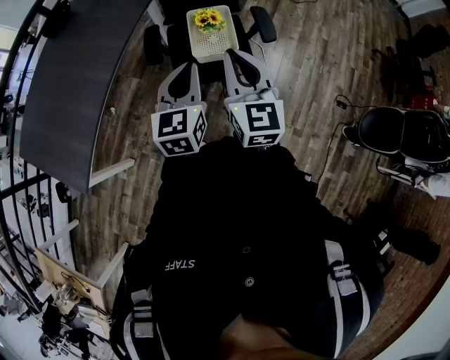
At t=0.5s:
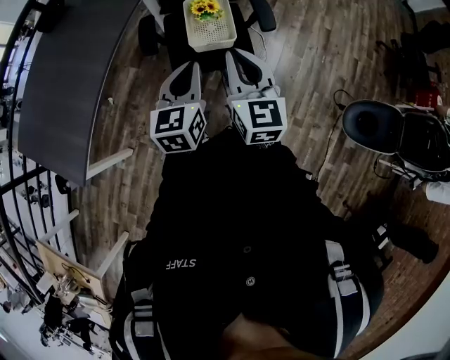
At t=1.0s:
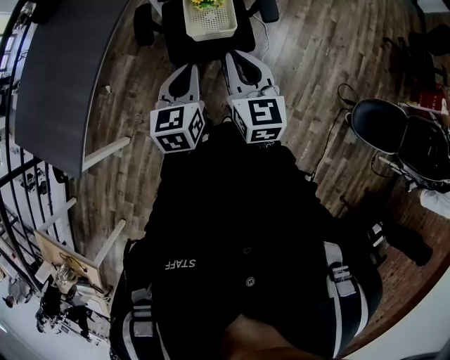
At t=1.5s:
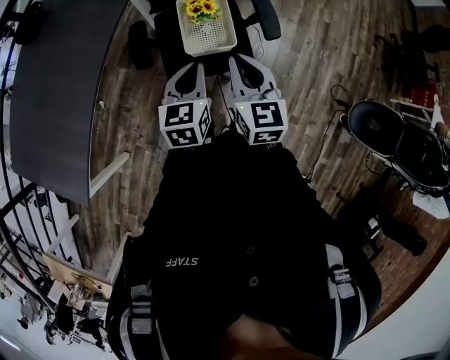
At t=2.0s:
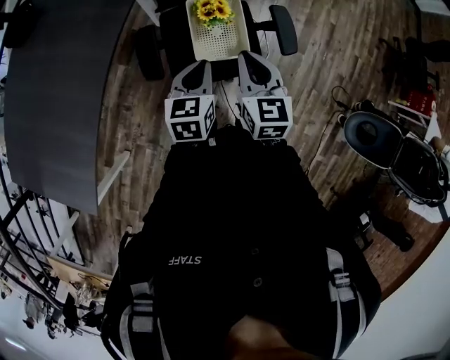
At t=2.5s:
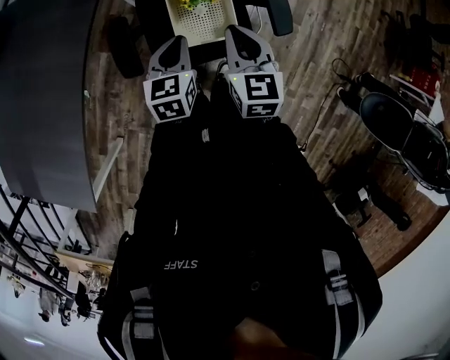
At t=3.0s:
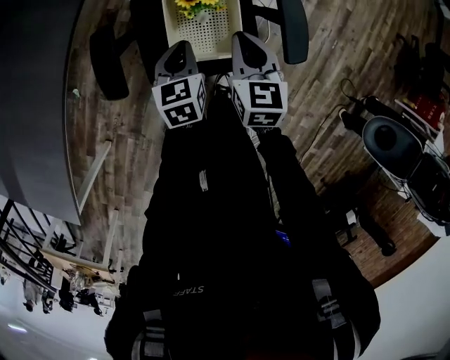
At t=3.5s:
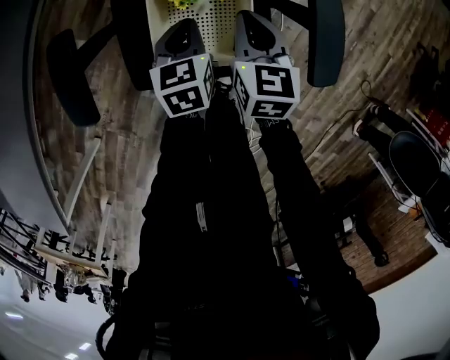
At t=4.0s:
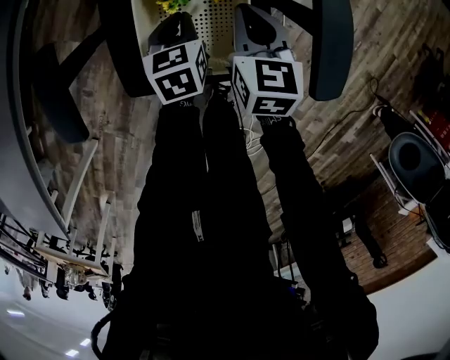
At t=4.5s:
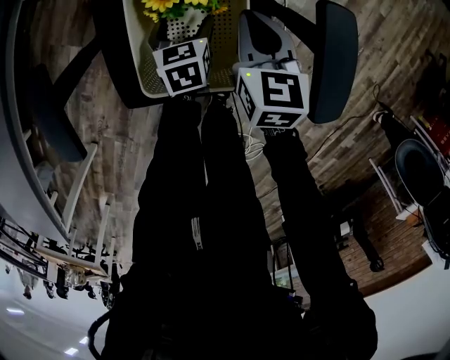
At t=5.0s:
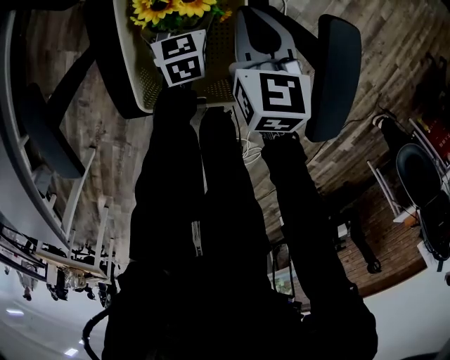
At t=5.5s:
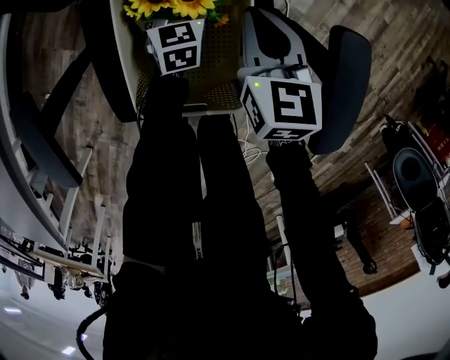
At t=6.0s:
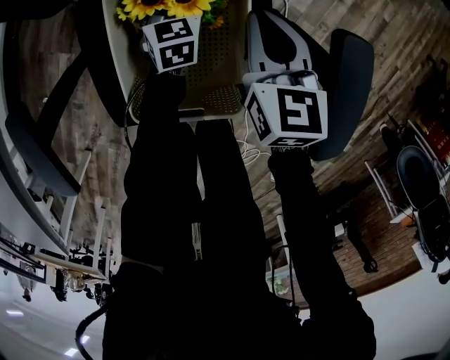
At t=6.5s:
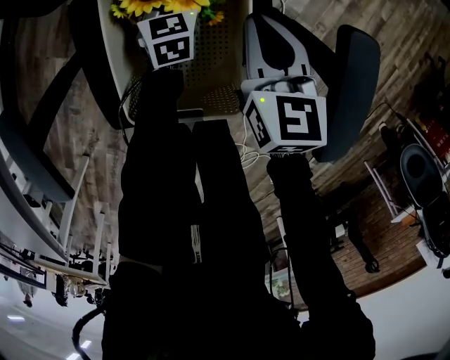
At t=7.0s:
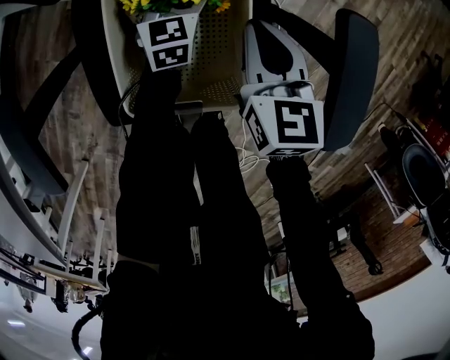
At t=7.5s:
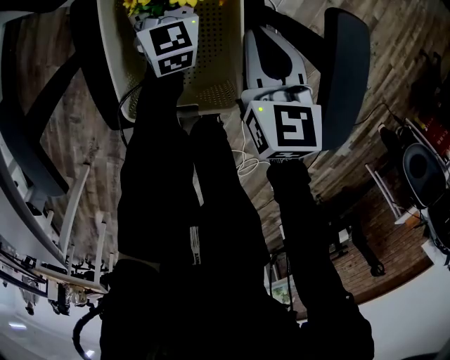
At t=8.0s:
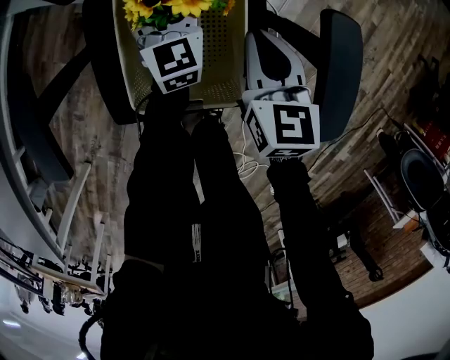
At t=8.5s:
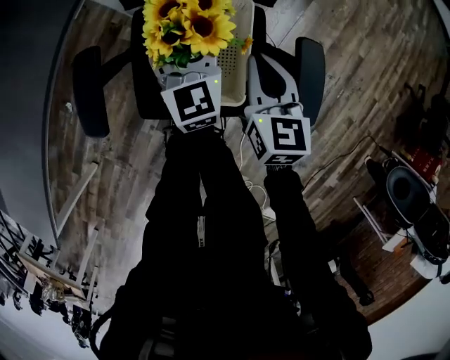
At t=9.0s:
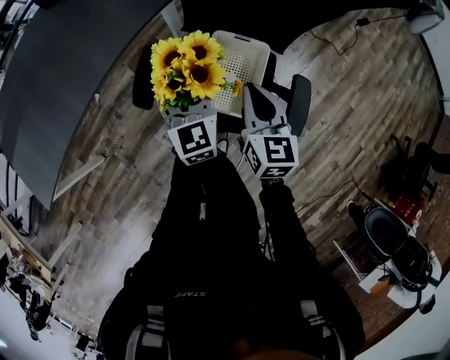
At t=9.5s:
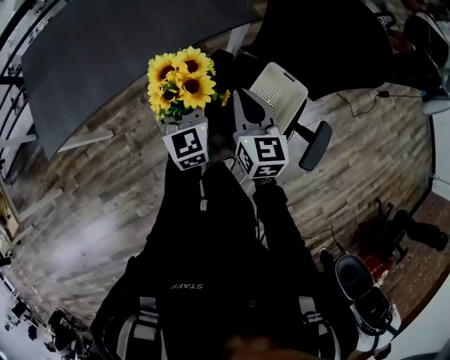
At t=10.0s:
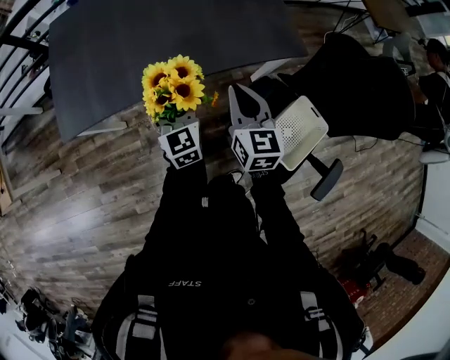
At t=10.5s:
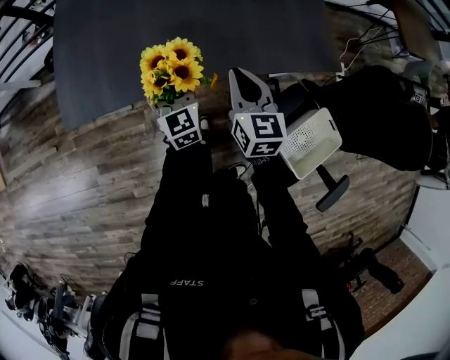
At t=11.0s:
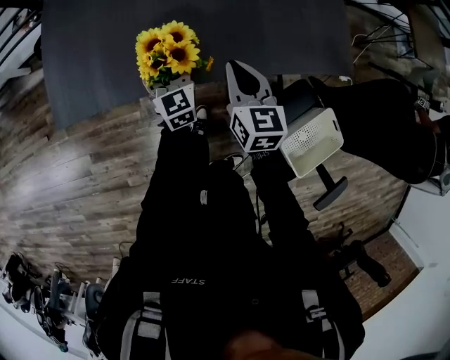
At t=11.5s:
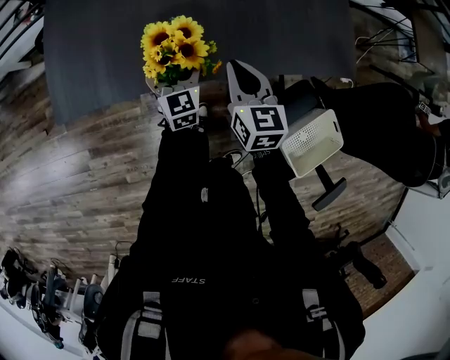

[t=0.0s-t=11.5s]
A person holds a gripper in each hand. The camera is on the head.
t=0.0s to t=2.0s: Both grippers travel together forward and downward, roughly 30 cm. The right gripper rotates approximately 20 degrees; the left gripper turns by about 20 degrees.
t=2.0s to t=4.0s: Both grippers move downward and forward, roughly 40 cm. The left gripper rotates approximately 20 degrees.
t=4.0s to t=6.0s: The left gripper moves forward and downward, about 20 cm, and opens. Meanwhile the right gripper shifts some 5 cm forward.
t=6.0s to t=7.5s: The left gripper is displaced upward by about 5 cm, and closes up.
t=7.5s to t=9.5s: The two grippers go some 40 cm upward. The right gripper rotates roughly 40 degrees. The left gripper turns by some 40 degrees.
t=9.5s to t=11.5s: The pair of grippers is taken forward and to the left, roughly 40 cm. The left gripper goes roughly 20 cm downward, and rotates some 20 degrees; the right gripper shifts approximately 15 cm downward, and rotates approximately 30 degrees.

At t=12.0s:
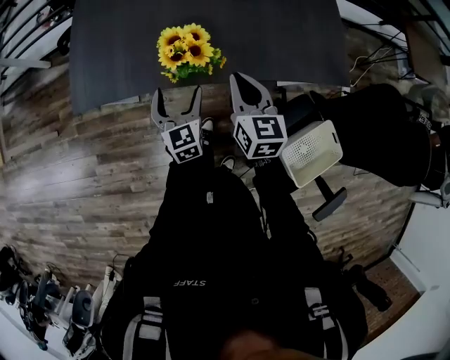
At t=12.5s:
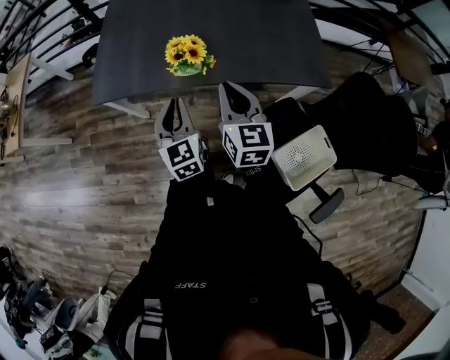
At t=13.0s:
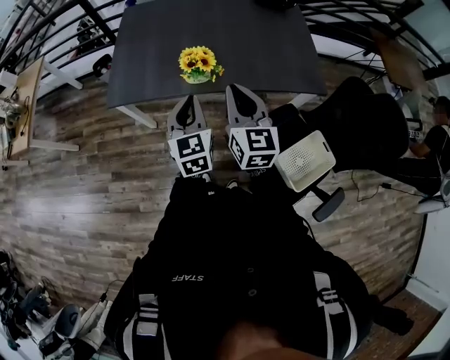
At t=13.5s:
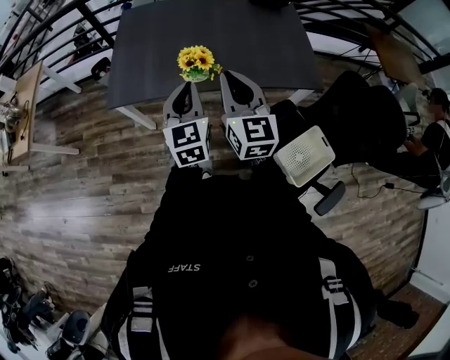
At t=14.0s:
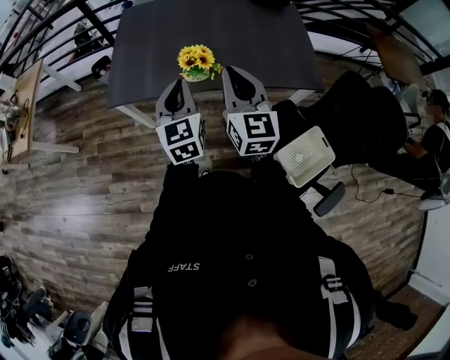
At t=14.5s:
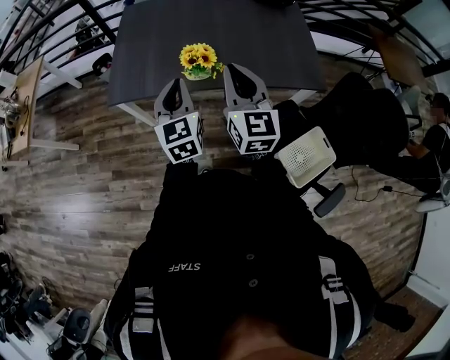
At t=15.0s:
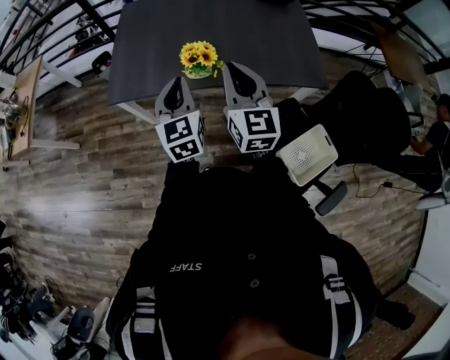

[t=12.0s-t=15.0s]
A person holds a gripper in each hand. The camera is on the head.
t=12.0s to t=13.5s: Both grippers move upward and backward, roughly 30 cm. The right gripper turns by roughly 20 degrees, while the left gripper closes up.
t=13.5s to t=15.0s: The grippers move only a little.

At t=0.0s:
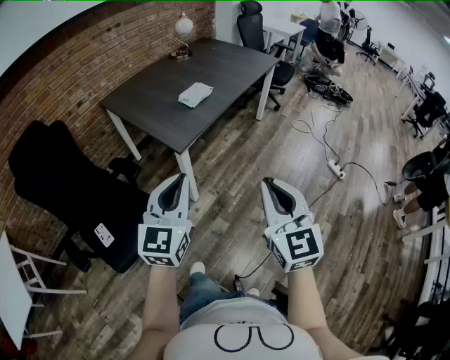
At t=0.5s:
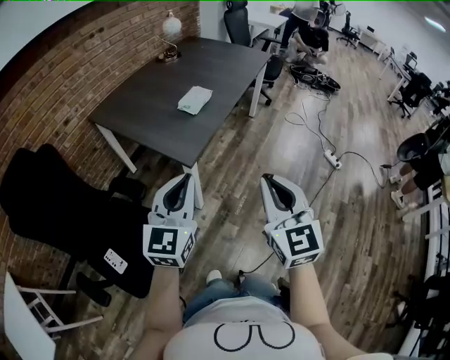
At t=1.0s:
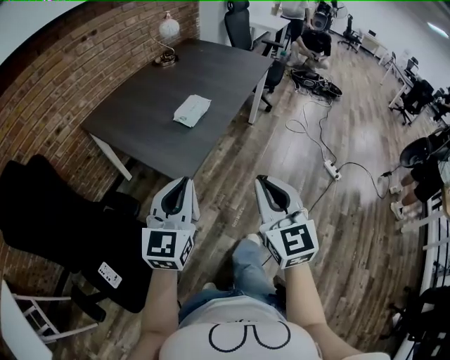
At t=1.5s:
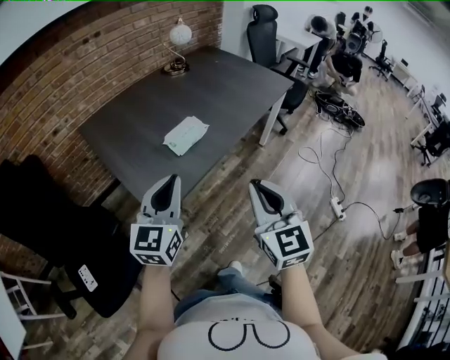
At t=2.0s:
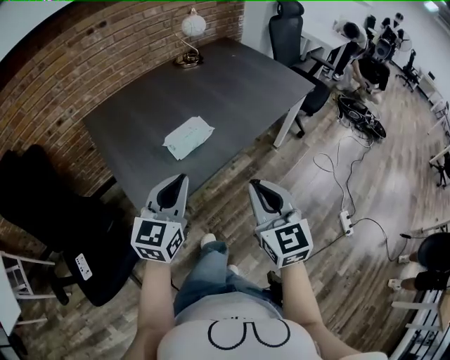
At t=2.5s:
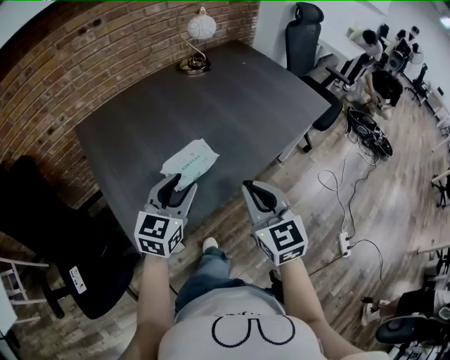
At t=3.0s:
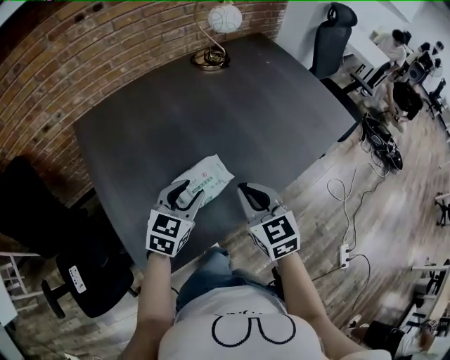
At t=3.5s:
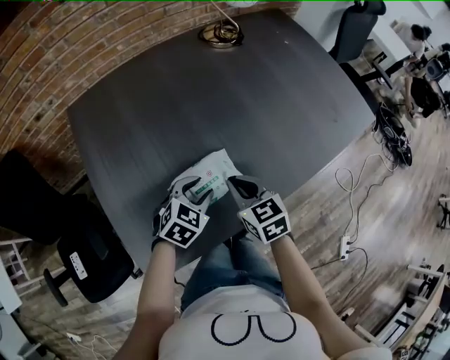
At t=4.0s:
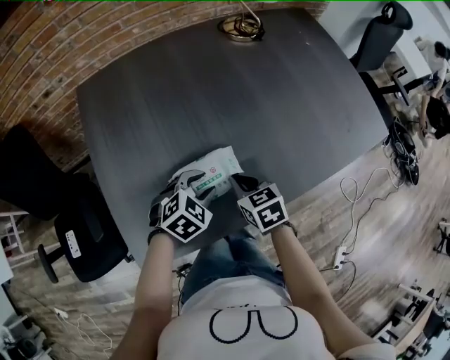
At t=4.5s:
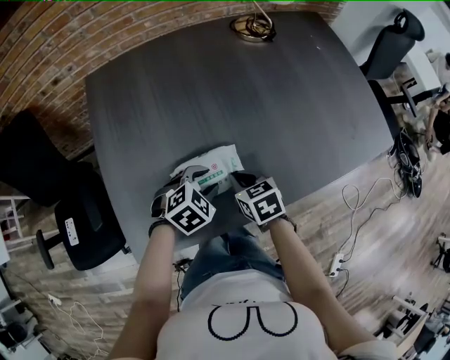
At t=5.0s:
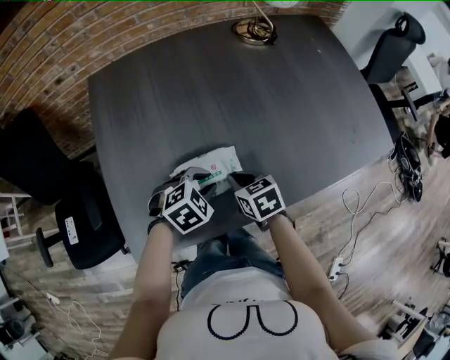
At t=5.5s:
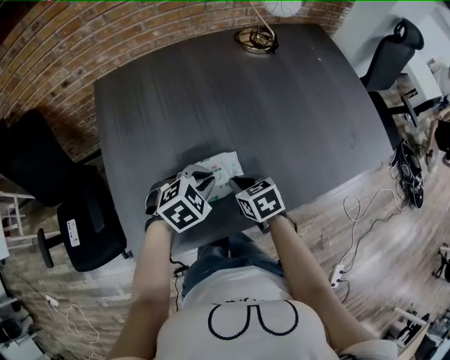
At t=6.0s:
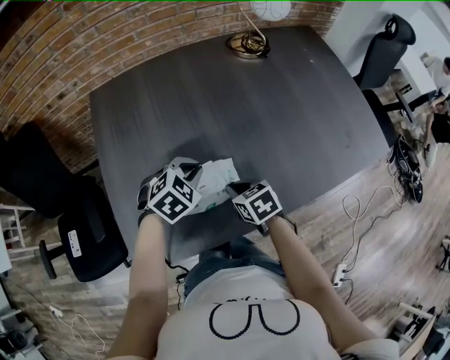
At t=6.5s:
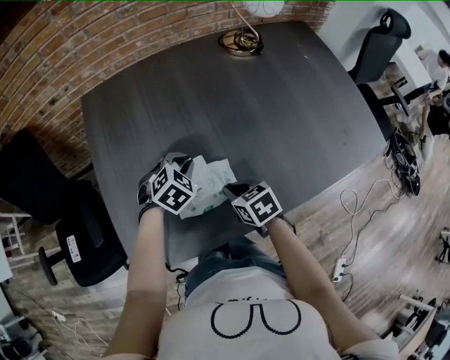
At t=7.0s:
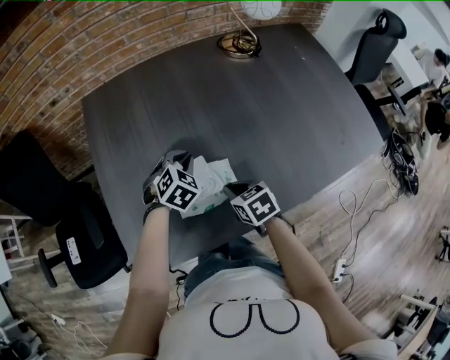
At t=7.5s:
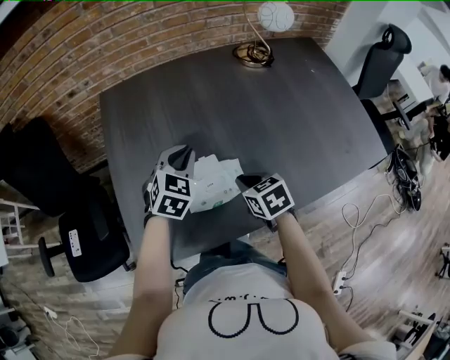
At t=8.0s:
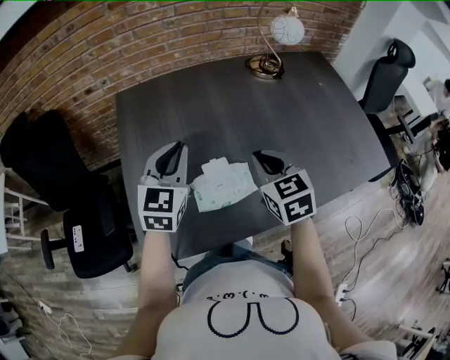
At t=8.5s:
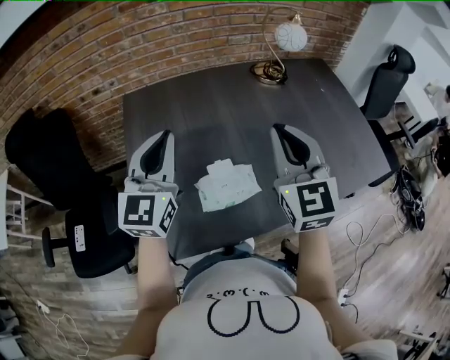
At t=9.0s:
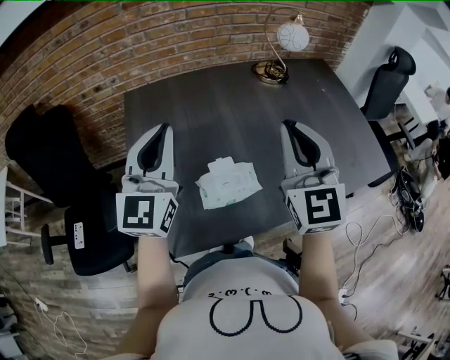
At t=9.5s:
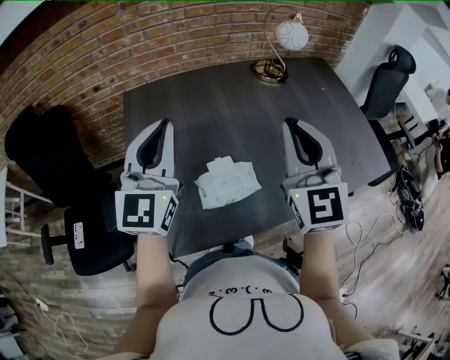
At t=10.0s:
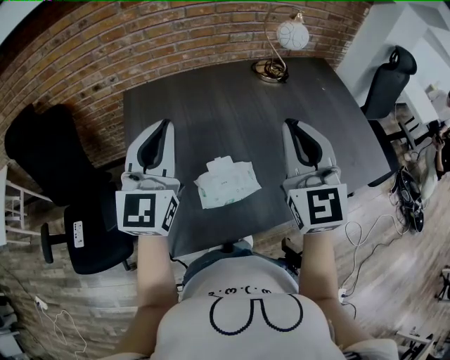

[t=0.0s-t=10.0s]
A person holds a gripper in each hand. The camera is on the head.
t=0.0s to t=2.0s: The two grippers travel together, forward, approximately 50 cm.
t=2.0s to t=4.0s: Both grippers move forward and downward, approximately 40 cm. The left gripper angles its fingers downward, by some 50 degrees, and opens. Meanwhile the right gripper angles its fingers downward, by some 40 degrees.
t=4.0s to t=6.0s: The left gripper travels forward by roughly 5 cm, and closes.
t=6.0s to t=8.0s: The right gripper travels upward by roughly 20 cm, and turns by about 30 degrees; the left gripper goes some 20 cm upward and to the left, and points its fingers some 40 degrees further upward.
t=8.0s to t=10.0s: Both grippers move upward, roughly 15 cm. The right gripper tips its fingers upward by roughly 30 degrees. The left gripper rotates approximately 20 degrees.

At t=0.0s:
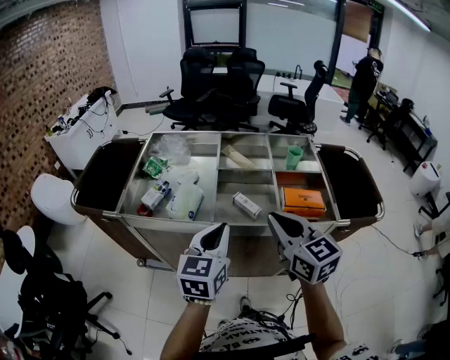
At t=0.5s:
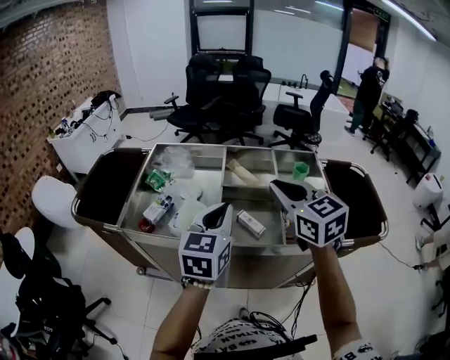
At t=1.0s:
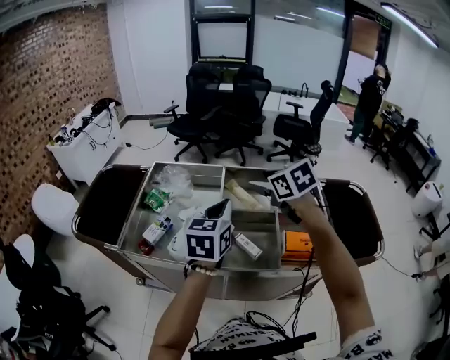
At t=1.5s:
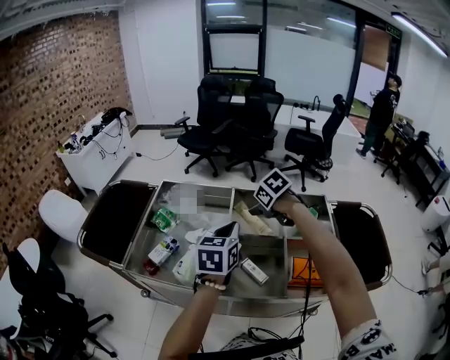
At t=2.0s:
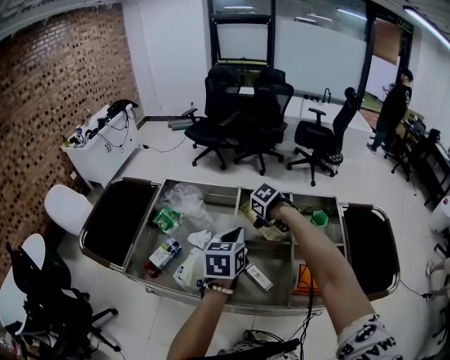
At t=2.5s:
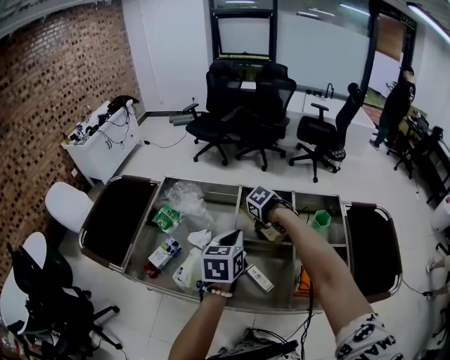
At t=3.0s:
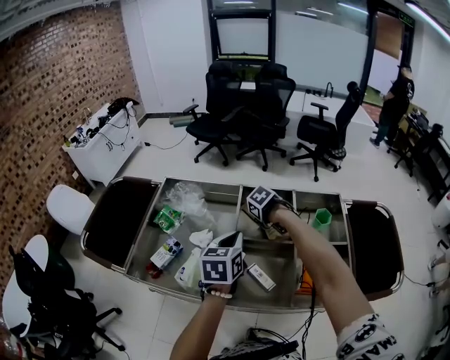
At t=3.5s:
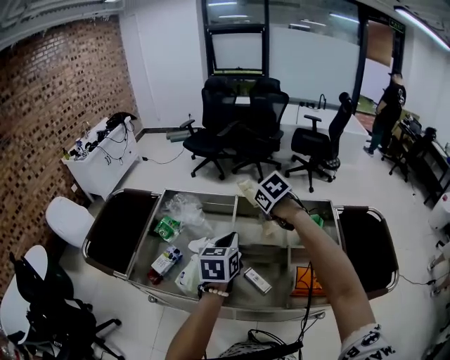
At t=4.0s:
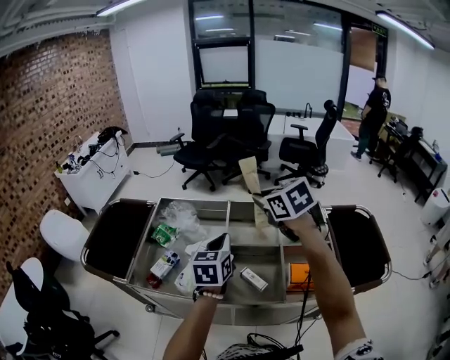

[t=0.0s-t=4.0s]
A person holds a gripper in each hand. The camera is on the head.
t=0.0s to t=2.0s: The left gripper travels upward and back again, some 10 cm each way, while the right gripper ends up some 40 cm from where it was, tilts its fingers about 70 degrees downward, and opens its fingers.
t=2.0s to t=4.0s: The right gripper shifts some 25 cm upward, tilts its fingers some 50 degrees upward, and closes. The left gripper moves about 5 cm.
